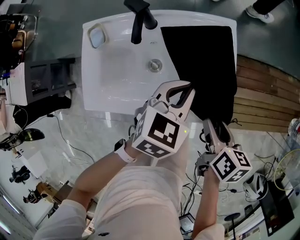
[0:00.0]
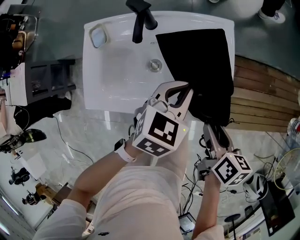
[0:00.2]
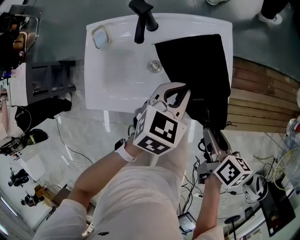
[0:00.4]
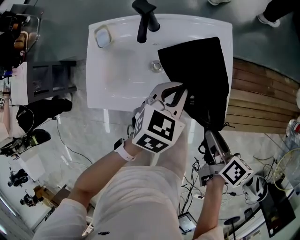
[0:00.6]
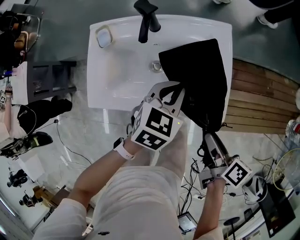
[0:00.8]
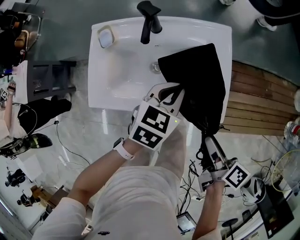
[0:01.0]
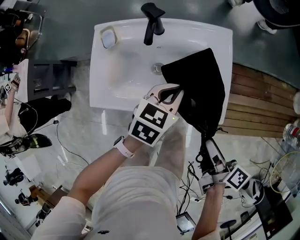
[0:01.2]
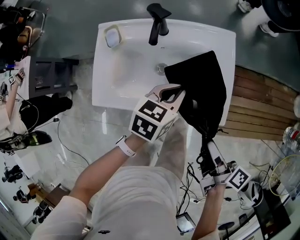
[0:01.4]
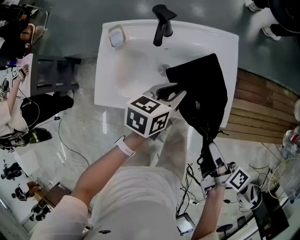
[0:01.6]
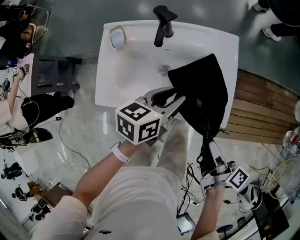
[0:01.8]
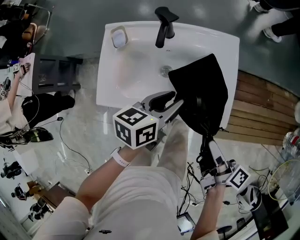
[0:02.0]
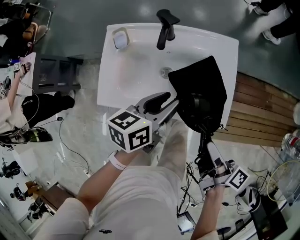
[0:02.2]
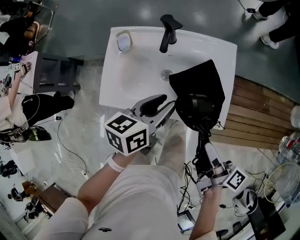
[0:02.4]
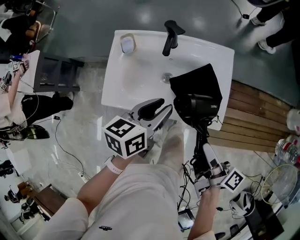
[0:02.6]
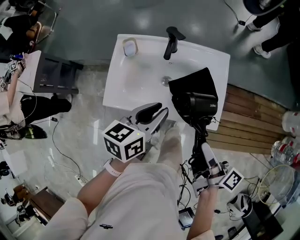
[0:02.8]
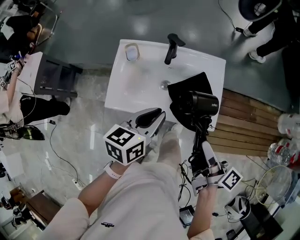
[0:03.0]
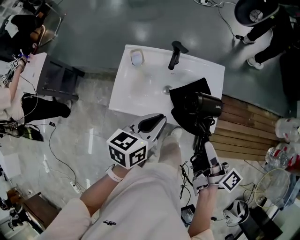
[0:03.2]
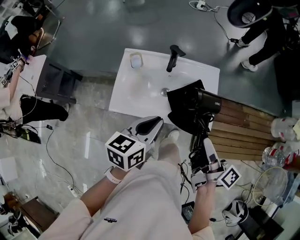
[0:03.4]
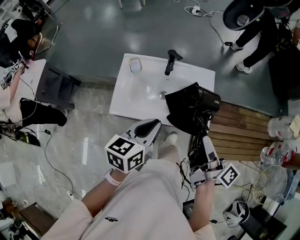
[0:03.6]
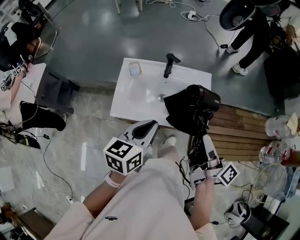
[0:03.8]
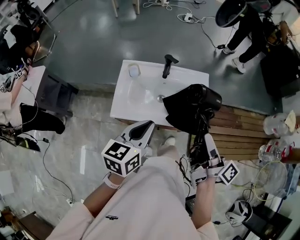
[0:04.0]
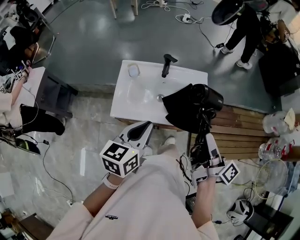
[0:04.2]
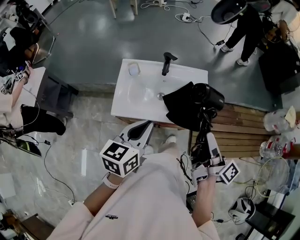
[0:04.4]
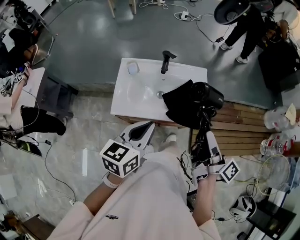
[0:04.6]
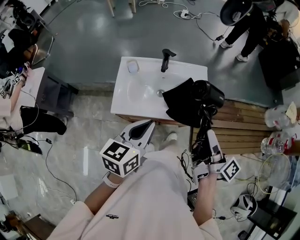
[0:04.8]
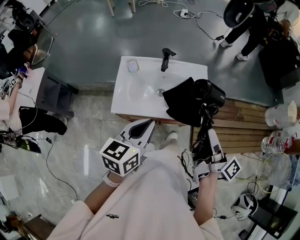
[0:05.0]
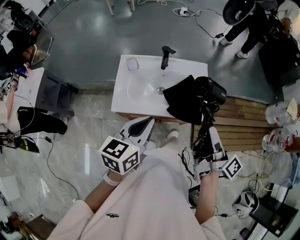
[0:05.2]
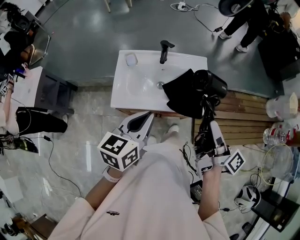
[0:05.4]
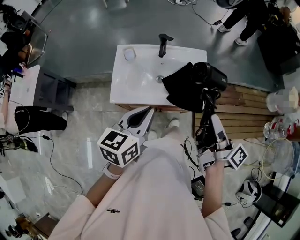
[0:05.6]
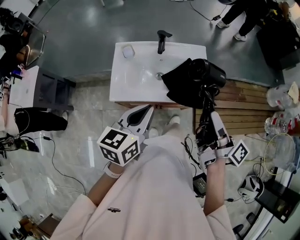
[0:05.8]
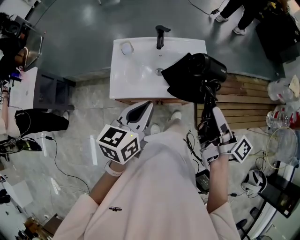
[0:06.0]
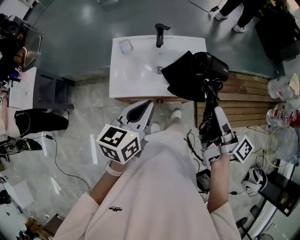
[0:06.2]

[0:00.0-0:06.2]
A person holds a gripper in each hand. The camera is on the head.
0:00.0 to 0:01.6: The right gripper goes approximately 10 cm backward, and rotates roughly 40 degrees. Meanwhile the left gripper moves to the left, about 5 cm, and turns by about 30 degrees.
0:01.6 to 0:03.2: The left gripper heads upward, backward and to the left, covering some 20 cm, while the right gripper shifts some 15 cm upward.
0:03.2 to 0:04.6: The left gripper is displaced backward and upward by about 10 cm. Meanwhile the right gripper heads upward and backward, covering about 10 cm.
0:04.6 to 0:06.2: The grippers stay close to where they were, moving slightly.

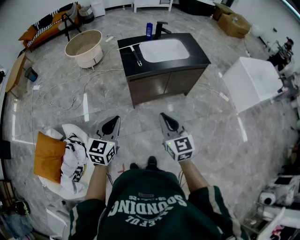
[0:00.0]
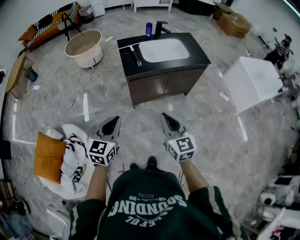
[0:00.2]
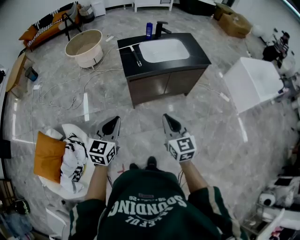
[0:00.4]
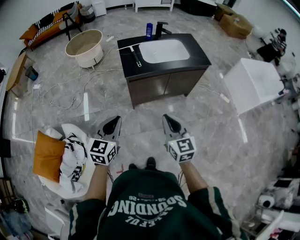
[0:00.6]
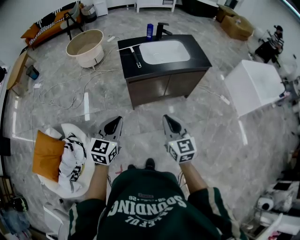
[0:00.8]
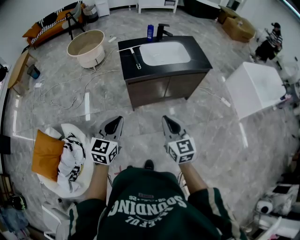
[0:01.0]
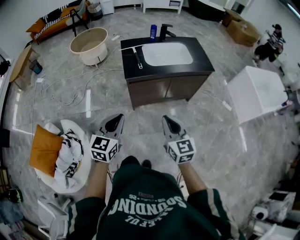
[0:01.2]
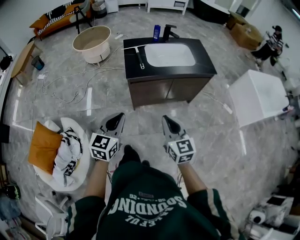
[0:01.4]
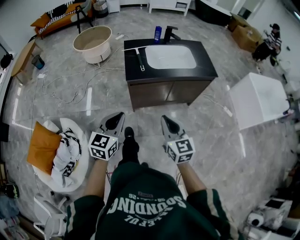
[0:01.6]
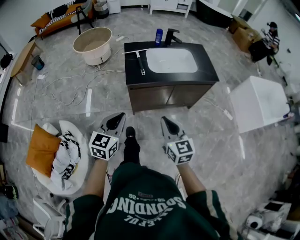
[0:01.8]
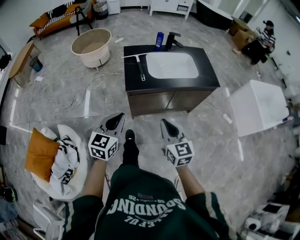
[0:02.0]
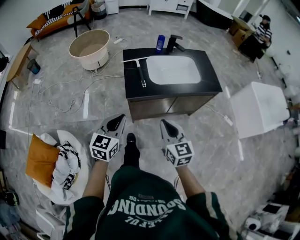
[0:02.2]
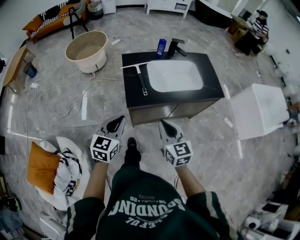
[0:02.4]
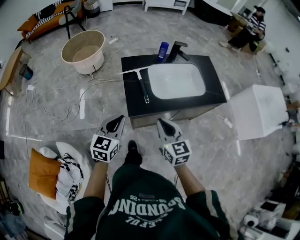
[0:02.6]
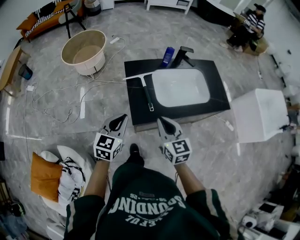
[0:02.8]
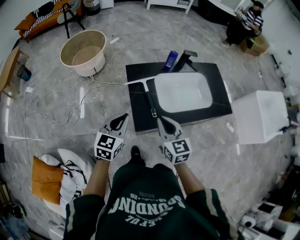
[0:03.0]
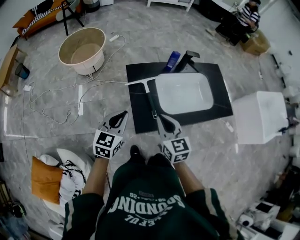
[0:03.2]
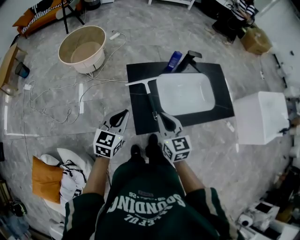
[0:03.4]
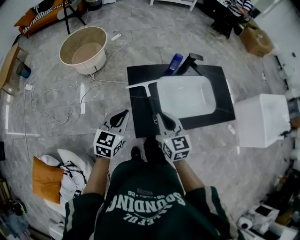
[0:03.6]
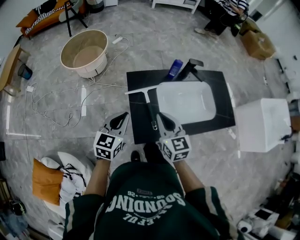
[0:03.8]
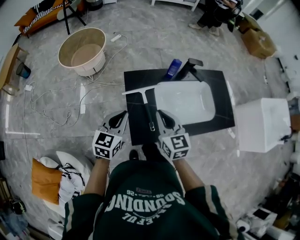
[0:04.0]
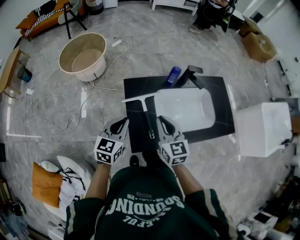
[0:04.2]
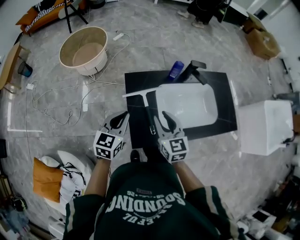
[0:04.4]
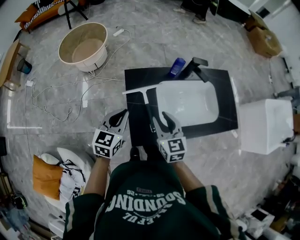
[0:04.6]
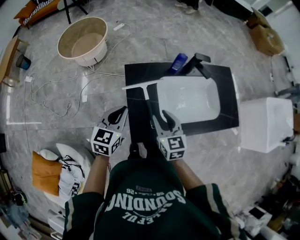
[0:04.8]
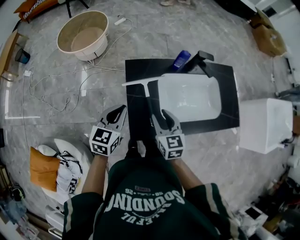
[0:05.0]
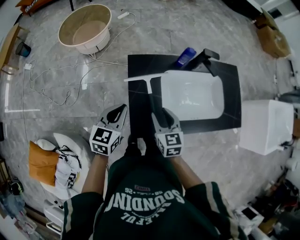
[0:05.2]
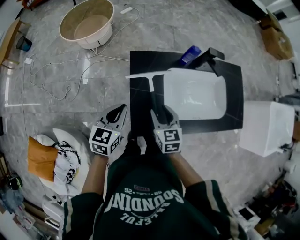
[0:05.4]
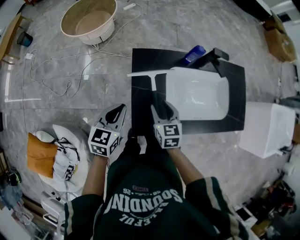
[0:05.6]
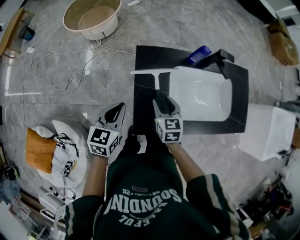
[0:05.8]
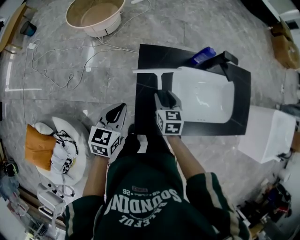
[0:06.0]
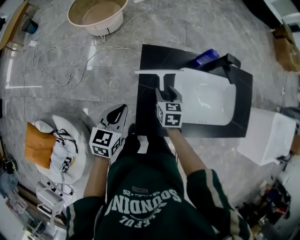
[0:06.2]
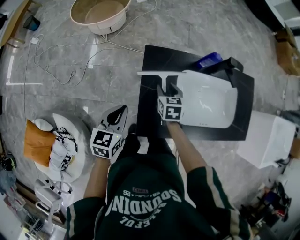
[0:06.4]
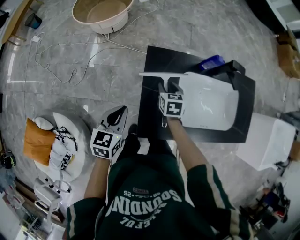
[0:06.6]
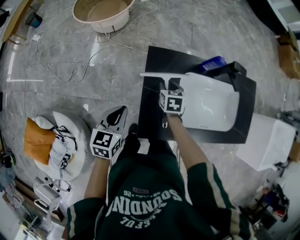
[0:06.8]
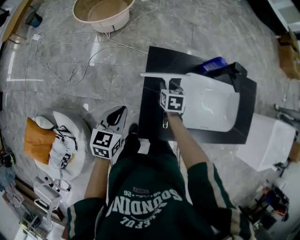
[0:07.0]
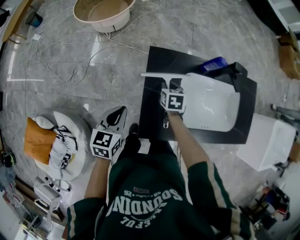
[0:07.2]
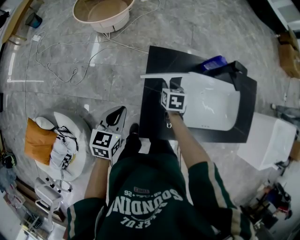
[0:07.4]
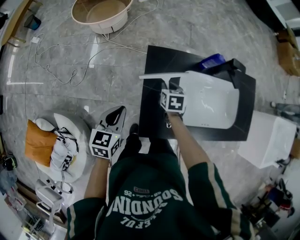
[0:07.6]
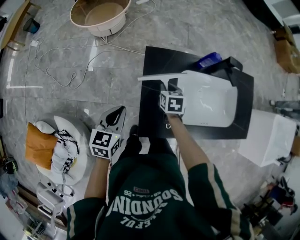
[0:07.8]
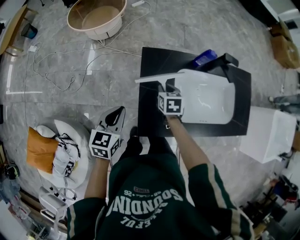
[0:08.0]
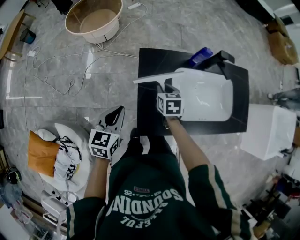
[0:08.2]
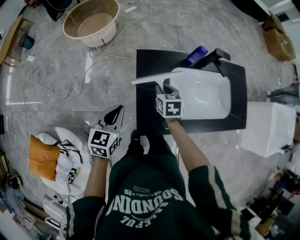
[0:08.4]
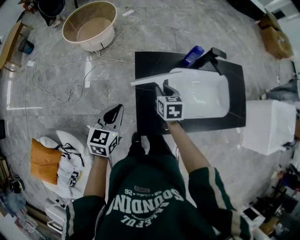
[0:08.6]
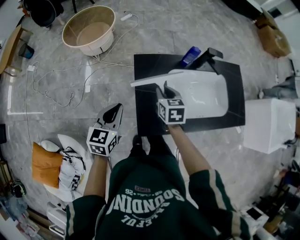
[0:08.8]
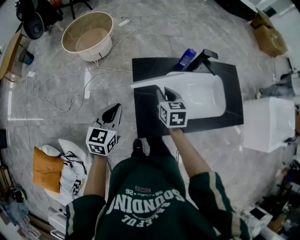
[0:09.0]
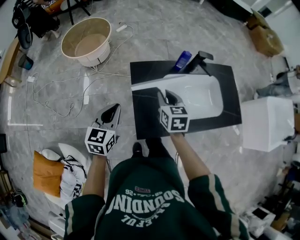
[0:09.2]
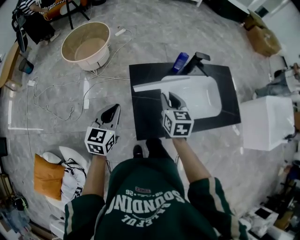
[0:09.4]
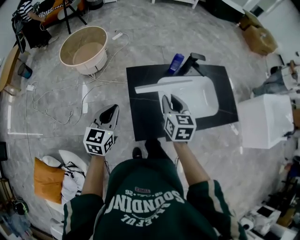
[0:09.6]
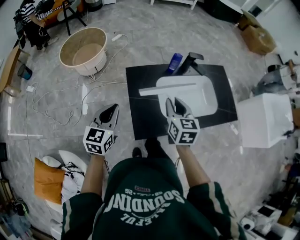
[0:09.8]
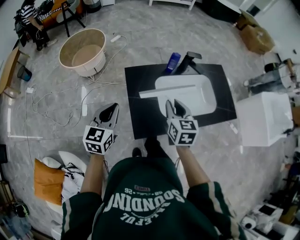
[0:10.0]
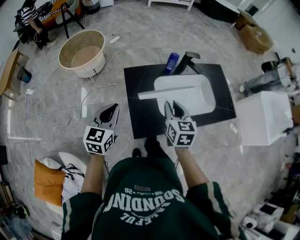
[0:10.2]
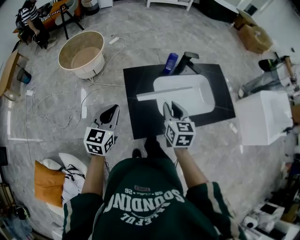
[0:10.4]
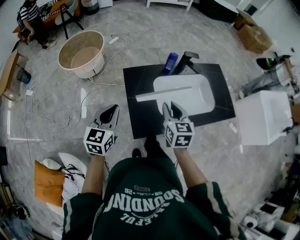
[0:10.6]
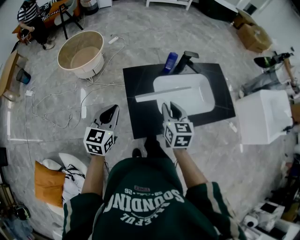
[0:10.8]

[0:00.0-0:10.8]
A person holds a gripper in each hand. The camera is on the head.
0:00.0 to 0:01.6: The right gripper moves forward, roughly 5 cm; the left gripper travels forward and to the right by approximately 10 cm.
0:01.6 to 0:03.0: Both grippers are carried forward, roughly 40 cm.
0:03.0 to 0:04.6: Both grippers travel together forward, some 15 cm. The right gripper opens.
0:04.6 to 0:06.2: The left gripper heads downward, covering approximately 10 cm. The right gripper moves downward and forward, roughly 15 cm, and rotates approximately 20 degrees.
0:06.2 to 0:07.8: The right gripper closes up.
0:07.8 to 0:09.2: The left gripper heads upward, covering approximately 10 cm; the right gripper moves upward, approximately 15 cm, and changes its angle by some 20 degrees.
0:09.2 to 0:10.8: The right gripper goes approximately 10 cm backward and to the right.

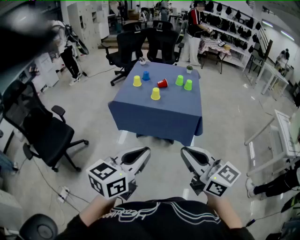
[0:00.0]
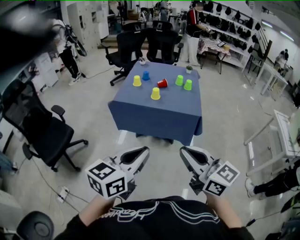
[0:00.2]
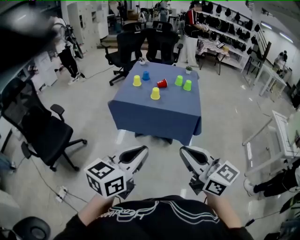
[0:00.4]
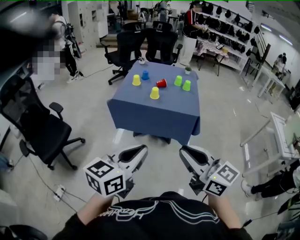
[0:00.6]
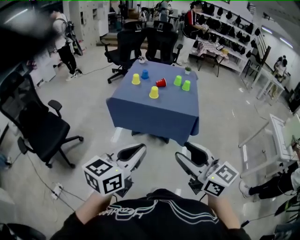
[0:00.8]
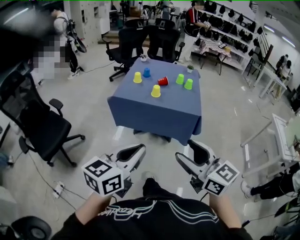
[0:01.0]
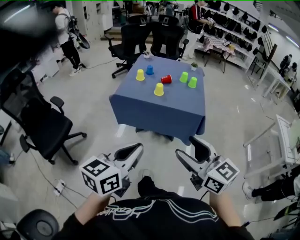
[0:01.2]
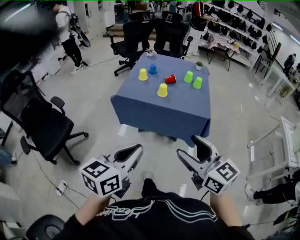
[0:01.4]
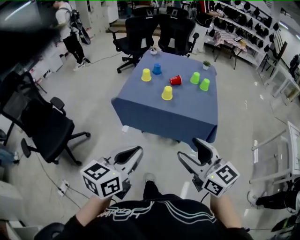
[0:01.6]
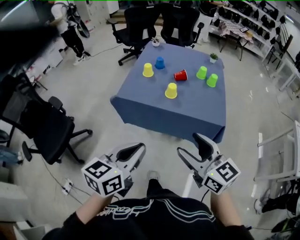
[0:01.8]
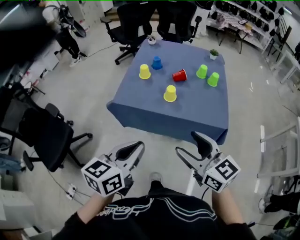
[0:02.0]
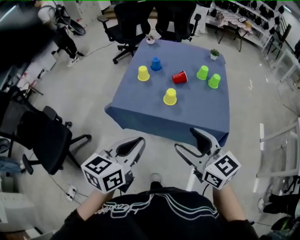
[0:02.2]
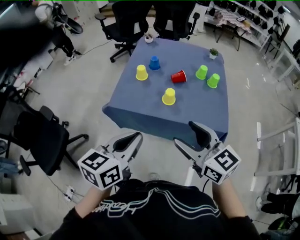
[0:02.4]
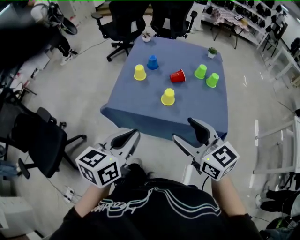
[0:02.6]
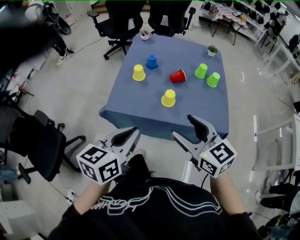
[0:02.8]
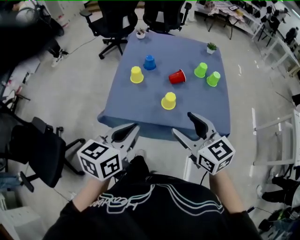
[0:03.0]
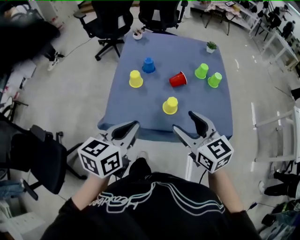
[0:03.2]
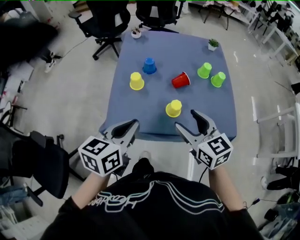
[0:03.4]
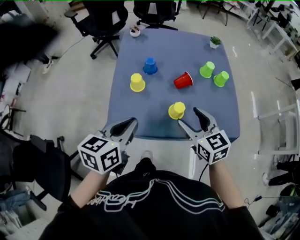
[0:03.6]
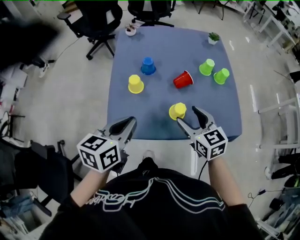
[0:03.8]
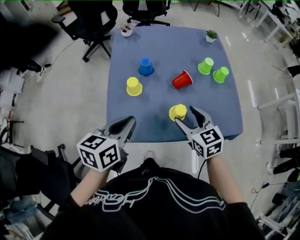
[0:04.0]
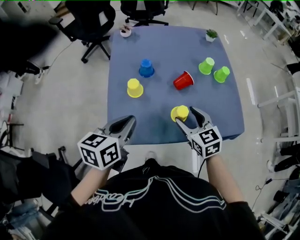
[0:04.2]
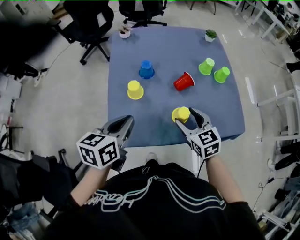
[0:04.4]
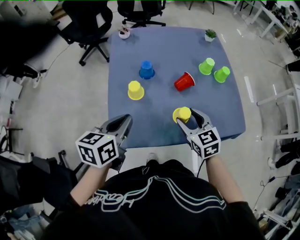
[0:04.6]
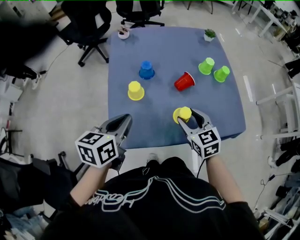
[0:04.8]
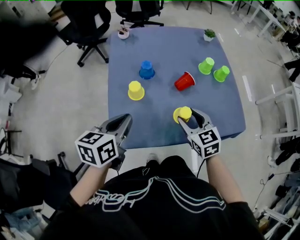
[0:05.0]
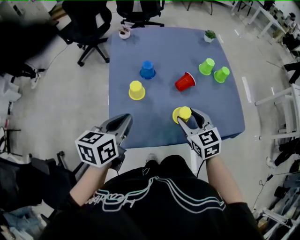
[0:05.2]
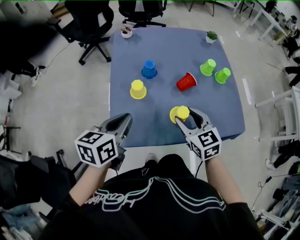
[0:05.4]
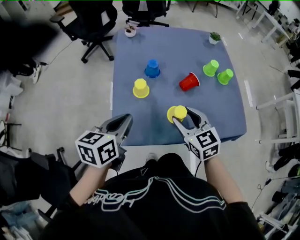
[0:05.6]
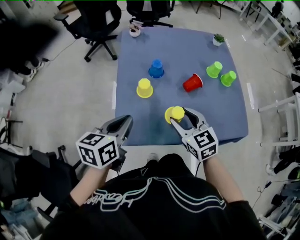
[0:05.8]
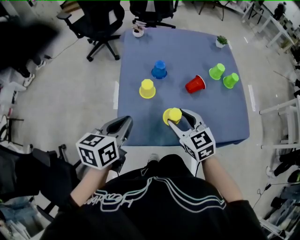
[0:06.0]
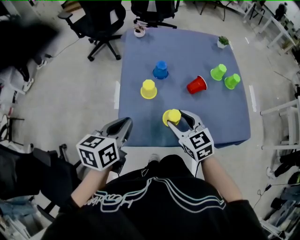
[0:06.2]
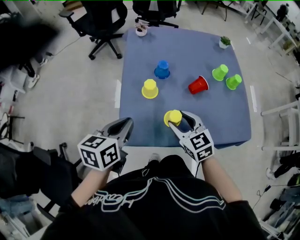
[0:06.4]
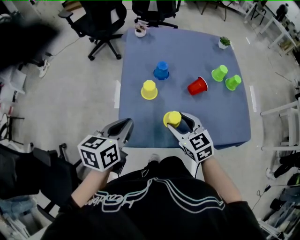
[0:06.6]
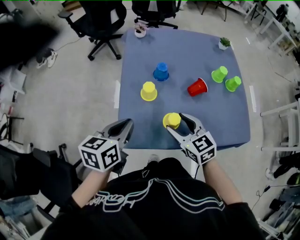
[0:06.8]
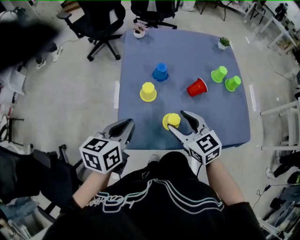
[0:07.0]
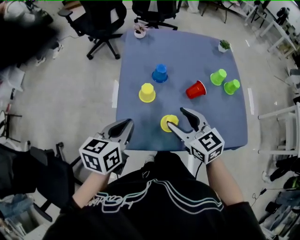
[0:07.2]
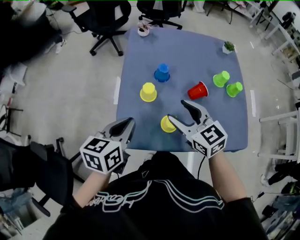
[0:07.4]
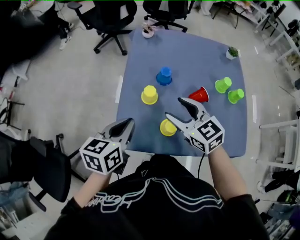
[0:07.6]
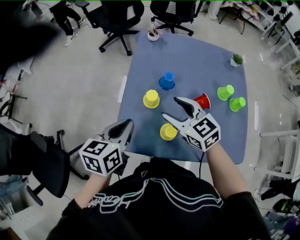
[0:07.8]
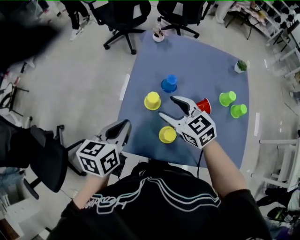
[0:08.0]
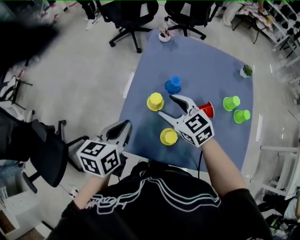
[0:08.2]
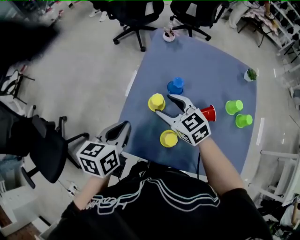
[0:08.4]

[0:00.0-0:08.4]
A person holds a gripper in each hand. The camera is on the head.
0:00.0 to 0:01.4: The right gripper goes approximately 10 cm forward, and opens its fingers; the left gripper is displaced forward and to the left by about 10 cm.
0:01.4 to 0:02.8: Both grippers travel together forward, some 35 cm.
0:02.8 to 0:04.2: The grippers both shift forward and downward by roughly 25 cm. The right gripper turns by approximately 30 degrees.
0:04.2 to 0:05.6: The right gripper shifts about 5 cm to the left.
0:05.6 to 0:07.0: The grippers stay close to where they were, moving slightly.
0:07.0 to 0:08.4: The right gripper heads forward, covering about 15 cm, and turns by roughly 30 degrees. The left gripper swivels roughly 20 degrees.
